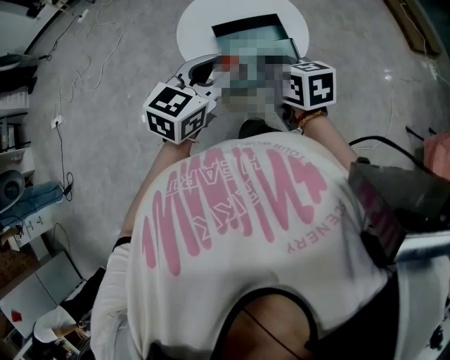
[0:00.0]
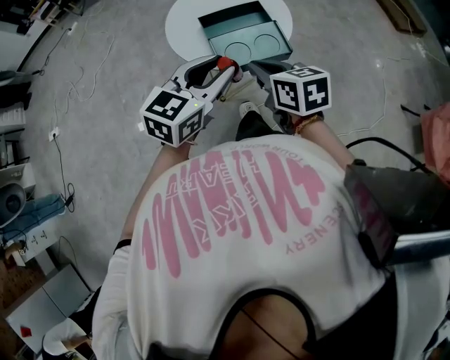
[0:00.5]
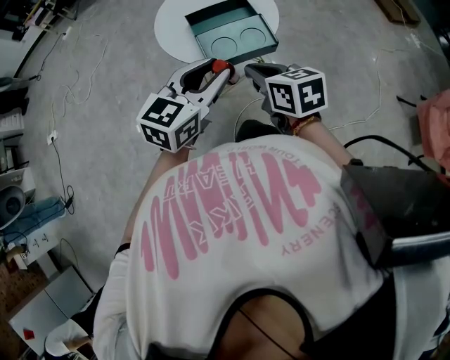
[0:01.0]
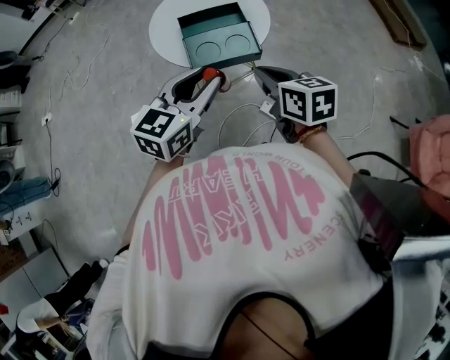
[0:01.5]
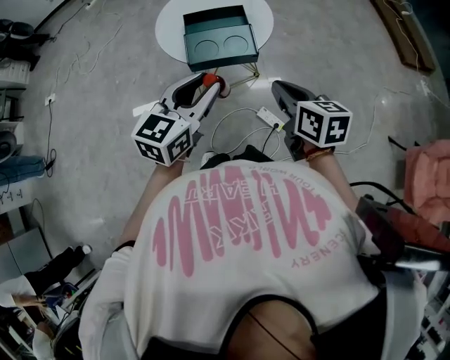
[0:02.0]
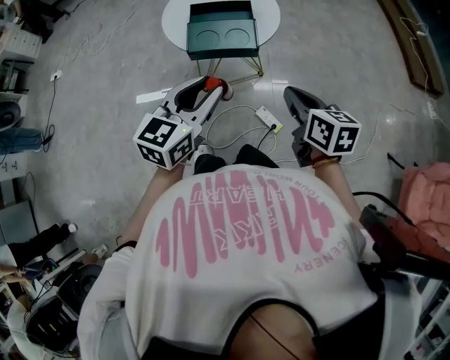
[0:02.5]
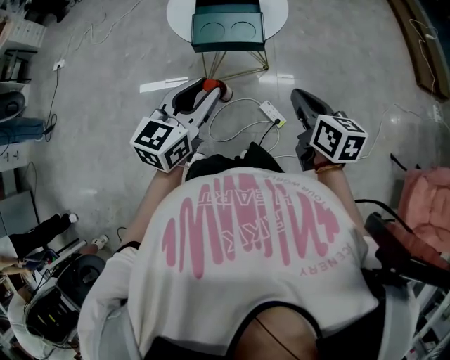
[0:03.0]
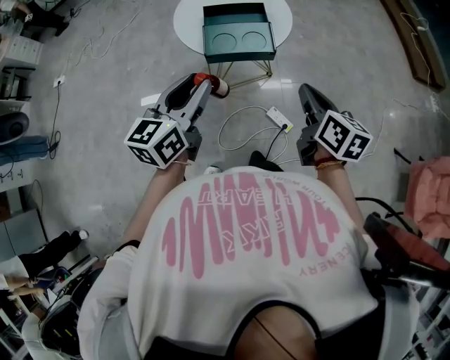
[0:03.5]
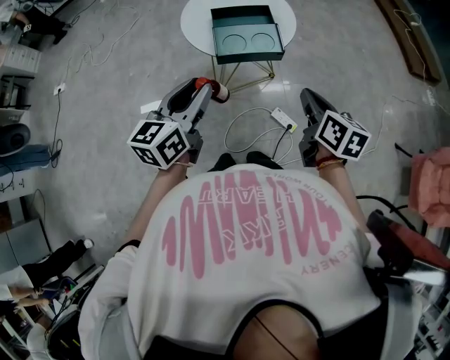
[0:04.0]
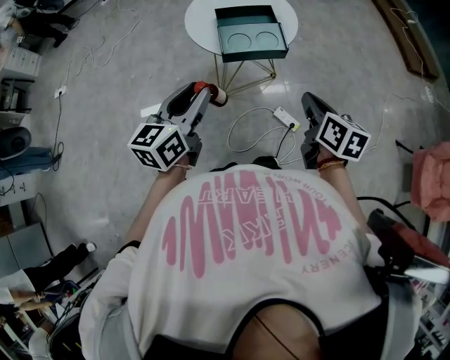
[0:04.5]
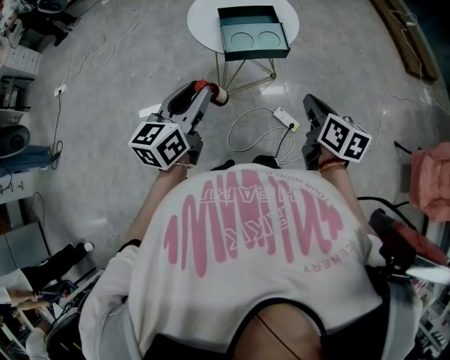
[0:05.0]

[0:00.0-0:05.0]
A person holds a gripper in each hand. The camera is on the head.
0:00.0 to 0:02.5: The right gripper is displaced to the right and backward by approximately 35 cm, while the left gripper goes roughly 25 cm backward and to the right, and changes its angle by approximately 20 degrees.
0:02.5 to 0:05.0: The right gripper shifts approximately 10 cm to the left and backward, while the left gripper goes approximately 20 cm to the left.

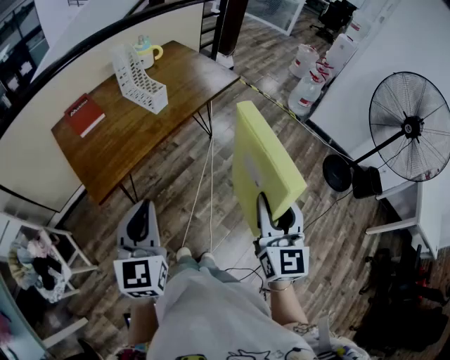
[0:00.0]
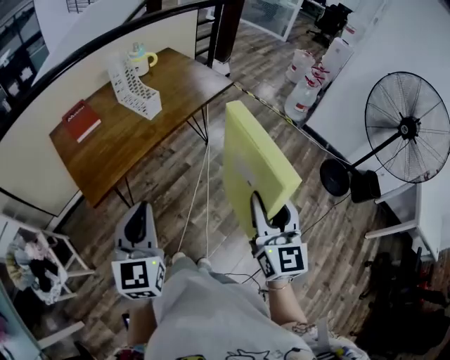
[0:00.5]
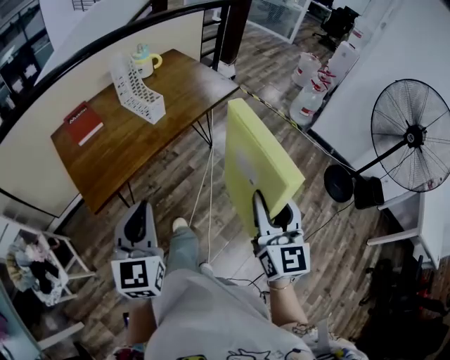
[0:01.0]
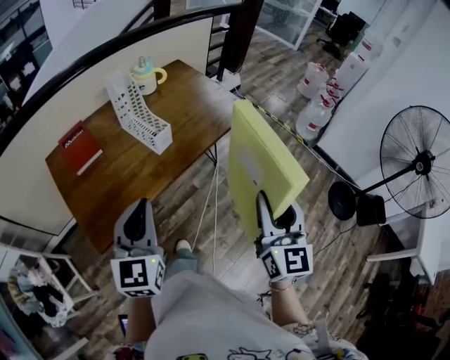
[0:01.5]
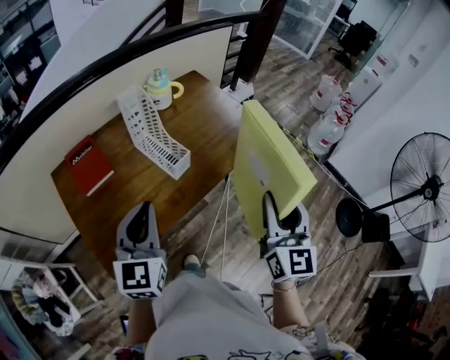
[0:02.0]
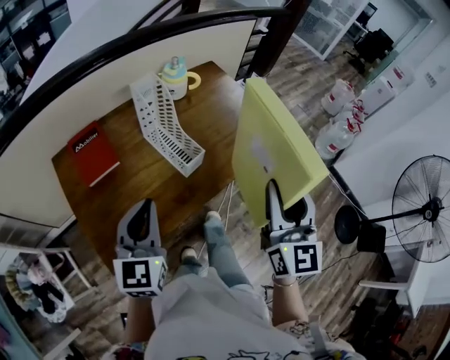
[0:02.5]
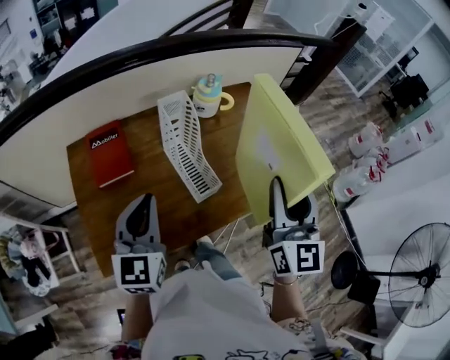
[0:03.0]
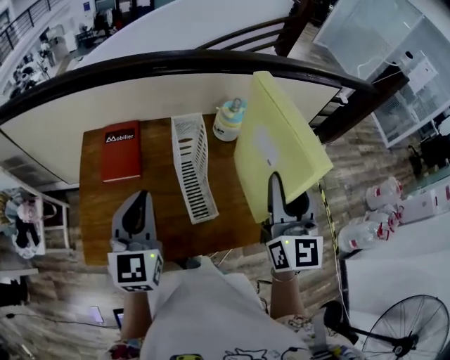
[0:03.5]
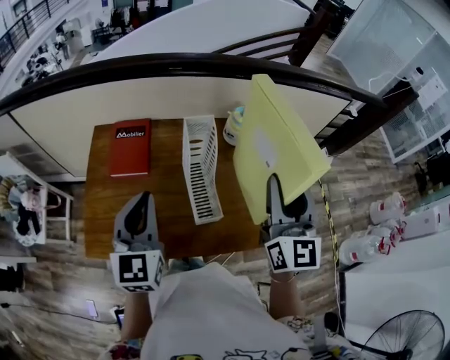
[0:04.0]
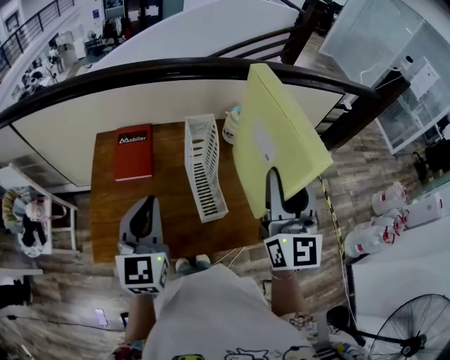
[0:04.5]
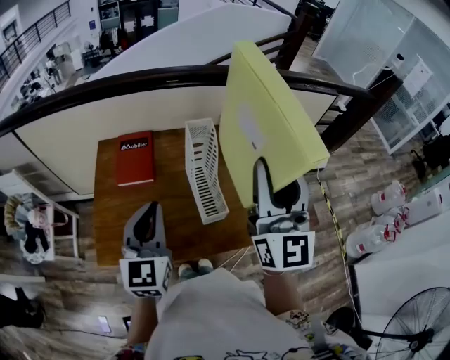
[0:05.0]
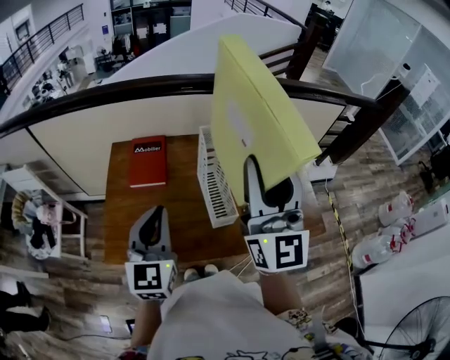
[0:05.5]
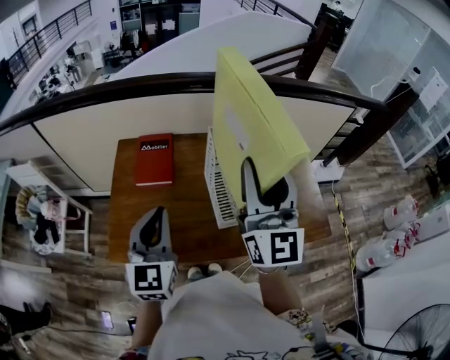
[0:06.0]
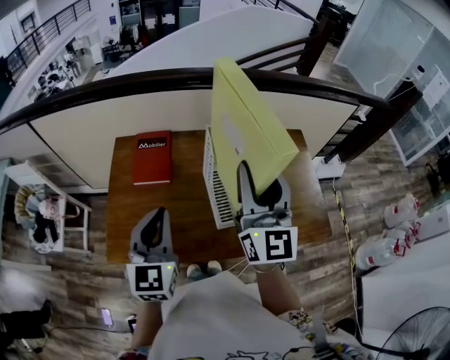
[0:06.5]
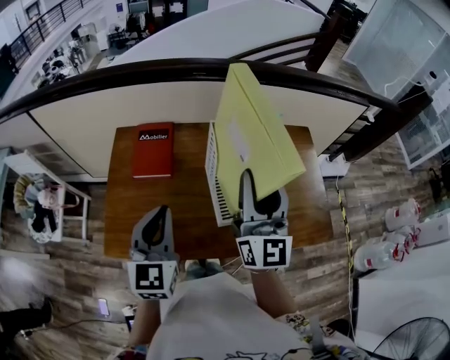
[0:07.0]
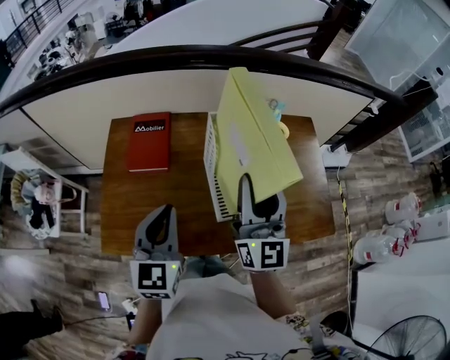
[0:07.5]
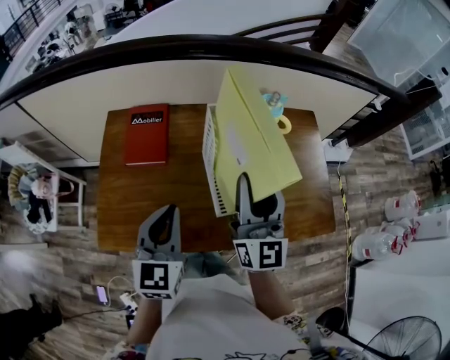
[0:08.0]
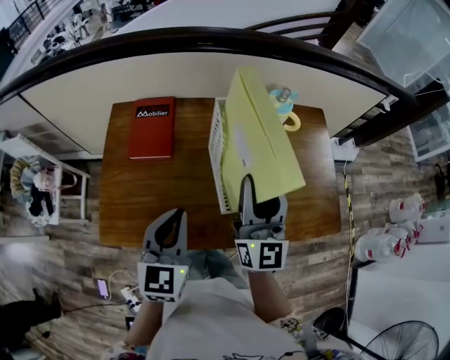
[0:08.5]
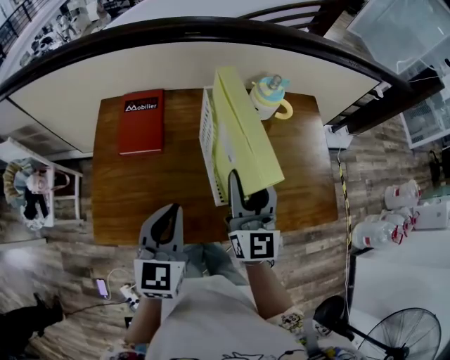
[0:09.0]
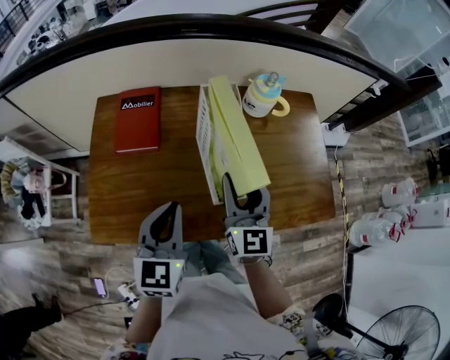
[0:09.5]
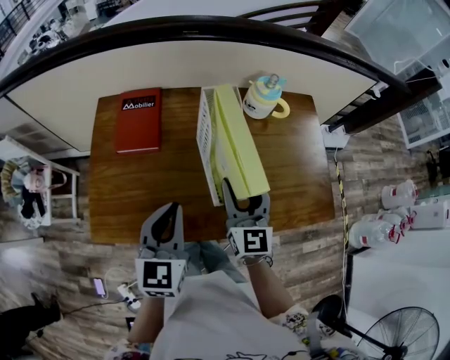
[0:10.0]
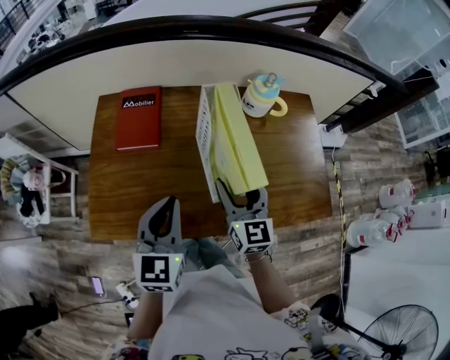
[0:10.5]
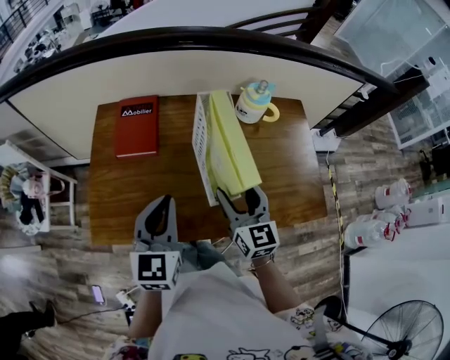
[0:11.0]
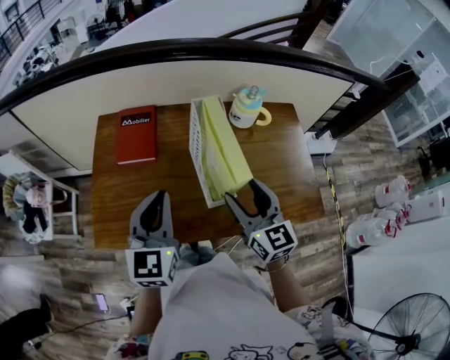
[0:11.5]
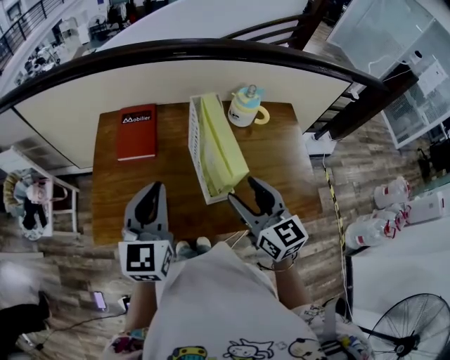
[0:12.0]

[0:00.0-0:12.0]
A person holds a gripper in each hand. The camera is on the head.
0:00.0 to 0:02.0: The two grippers go roughly 30 cm forward.
0:02.0 to 0:04.0: The right gripper ends up roughly 35 cm from where it was, and turns by roughly 40 degrees. The left gripper moves some 15 cm, and changes its angle by roughly 40 degrees.
0:04.0 to 0:06.0: The right gripper moves to the left and upward, about 15 cm; the left gripper travels backward by approximately 5 cm.
0:06.0 to 0:08.0: The right gripper is displaced downward by some 15 cm. Meanwhile the left gripper shifts about 5 cm downward.
0:08.0 to 0:10.0: The right gripper travels downward by approximately 15 cm, and swivels approximately 20 degrees.
0:10.0 to 0:12.0: The right gripper heads upward and backward, covering roughly 10 cm, and turns by about 20 degrees; the left gripper moves upward, roughly 10 cm.

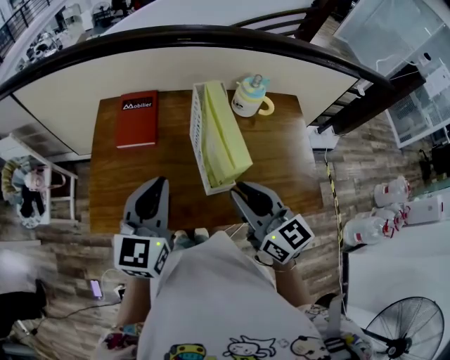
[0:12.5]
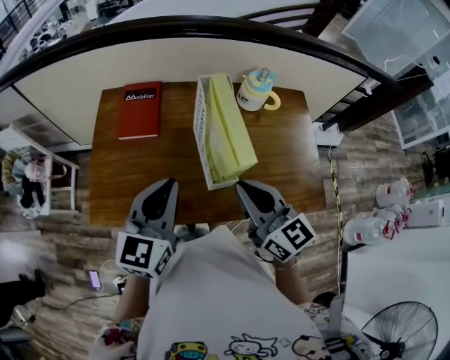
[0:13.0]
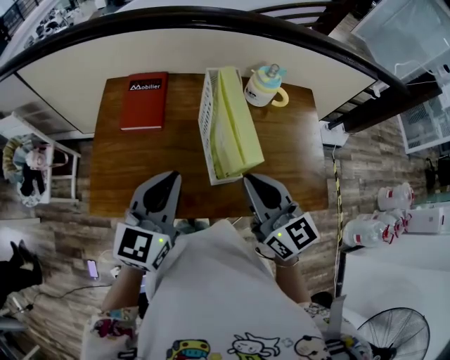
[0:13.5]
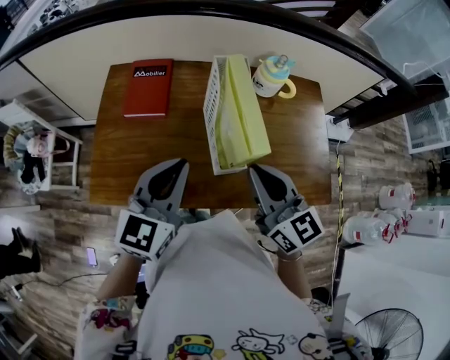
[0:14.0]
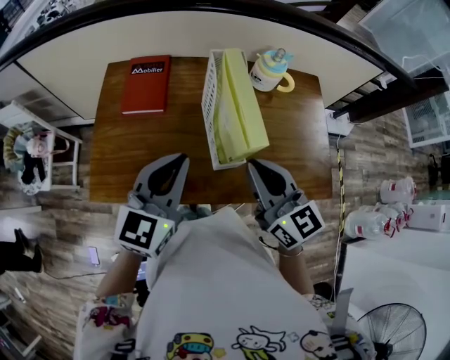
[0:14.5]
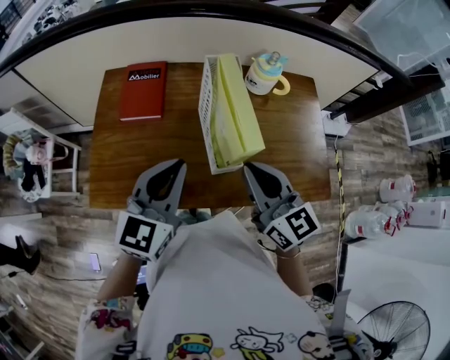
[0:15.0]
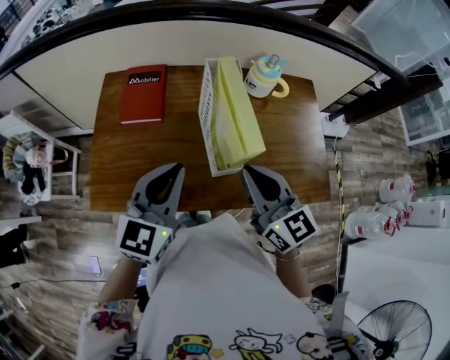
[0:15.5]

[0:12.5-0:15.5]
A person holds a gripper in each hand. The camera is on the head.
0:12.5 to 0:14.0: The grippers move only a little.
0:14.0 to 0:15.5: Both grippers stay about where they are.

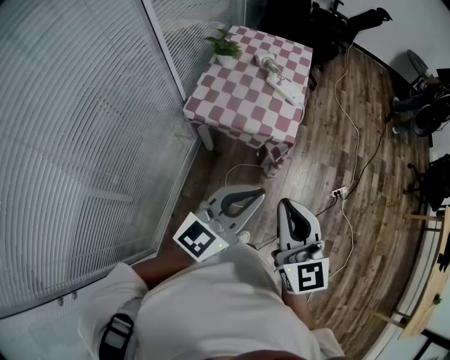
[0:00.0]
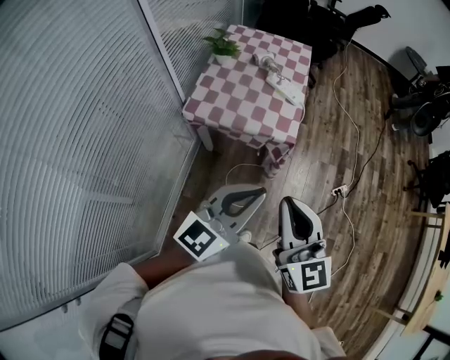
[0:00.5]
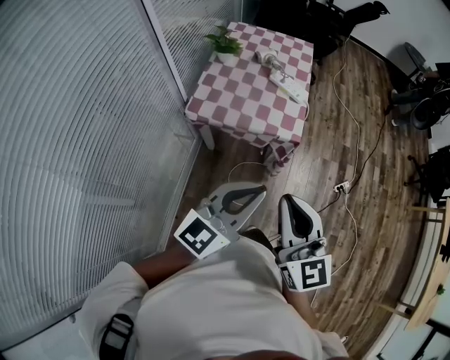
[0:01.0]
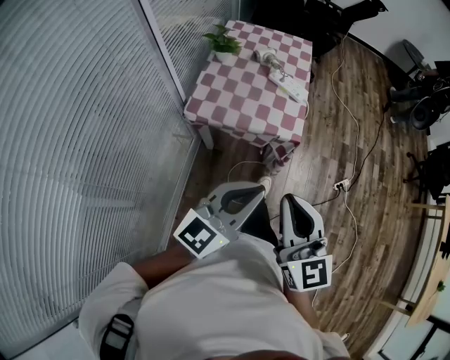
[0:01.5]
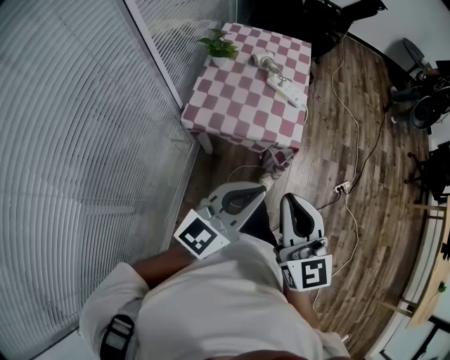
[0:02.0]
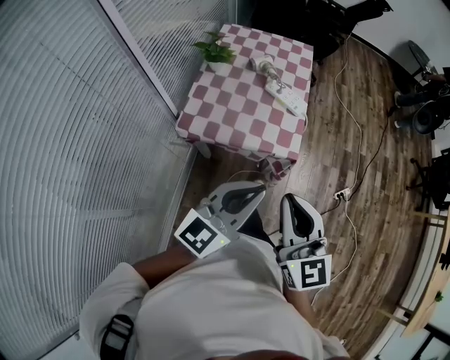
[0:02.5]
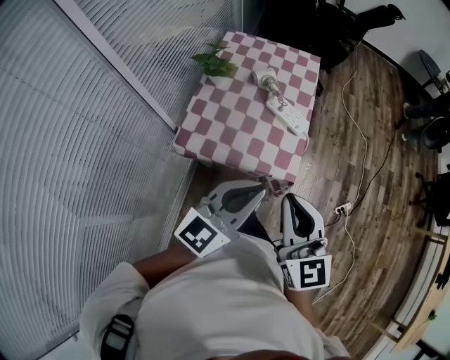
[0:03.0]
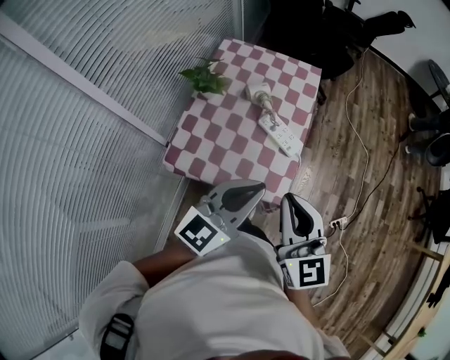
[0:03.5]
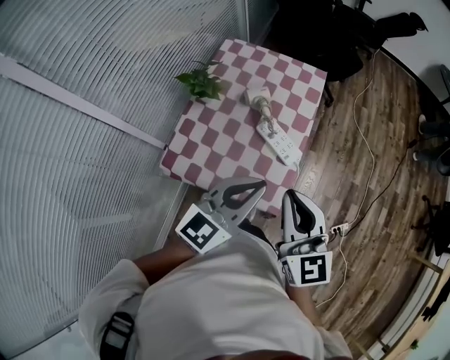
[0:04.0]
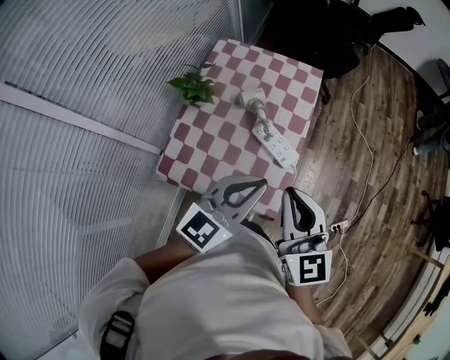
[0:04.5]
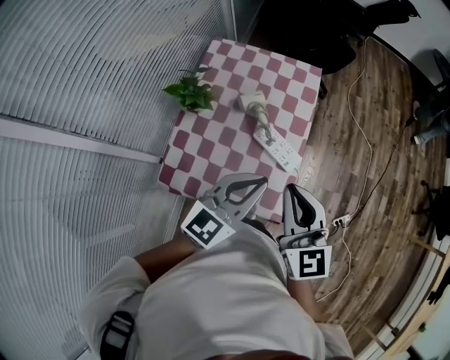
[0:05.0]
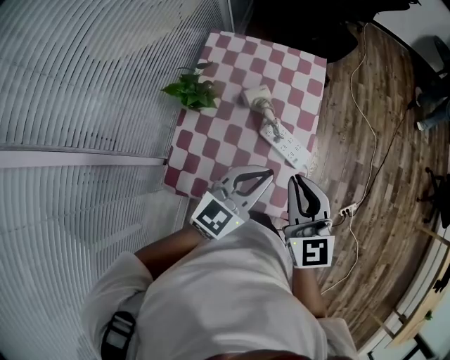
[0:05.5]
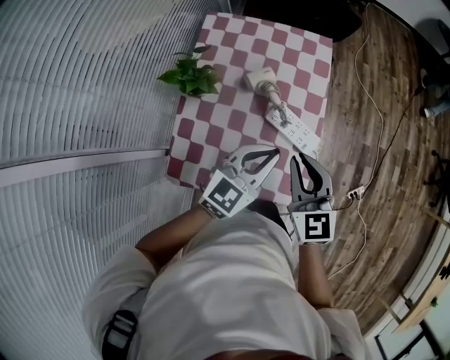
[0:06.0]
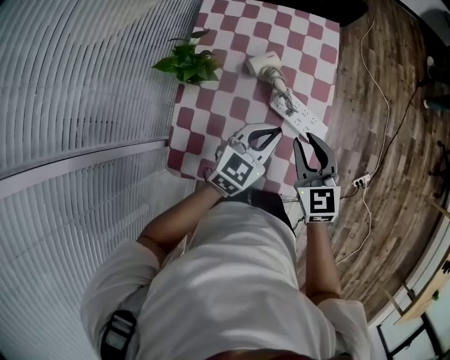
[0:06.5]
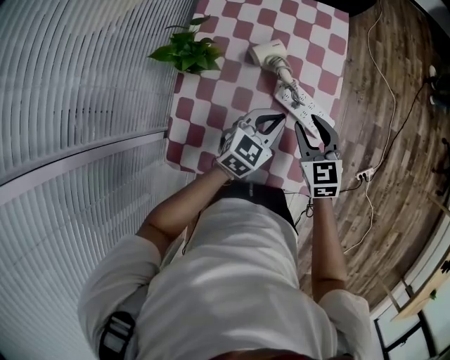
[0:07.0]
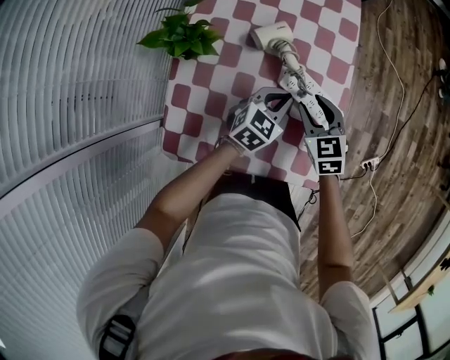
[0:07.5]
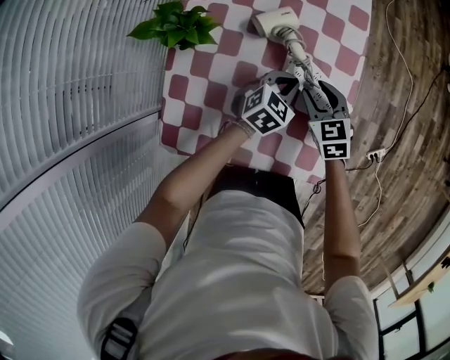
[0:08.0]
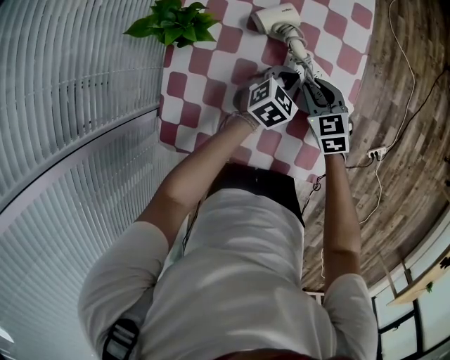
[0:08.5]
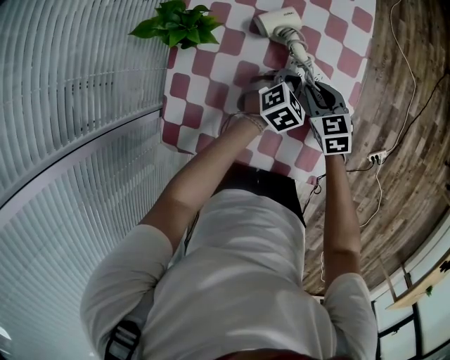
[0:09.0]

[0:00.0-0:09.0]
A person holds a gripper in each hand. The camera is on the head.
0:00.0 to 0:02.0: Both grippers move forward and to the left, about 10 cm.
0:02.0 to 0:04.5: The two grippers travel together, forward, some 40 cm.
0:04.5 to 0:07.0: Both grippers travel together downward and forward, some 30 cm. The left gripper turns by some 30 degrees; the right gripper swivels about 30 degrees, and opens up.
0:07.0 to 0:09.0: The right gripper moves downward, about 15 cm, while the left gripper heads downward and forward, covering roughly 15 cm, and swivels about 30 degrees.
